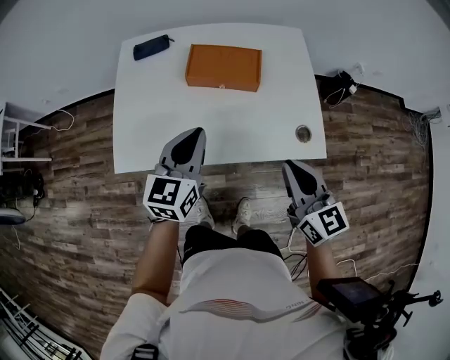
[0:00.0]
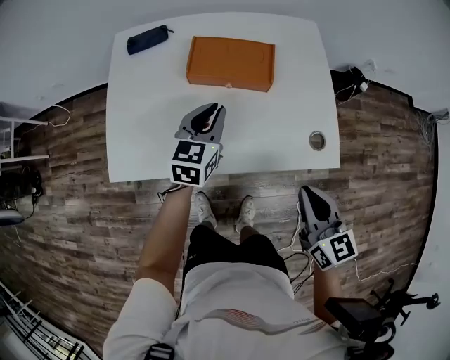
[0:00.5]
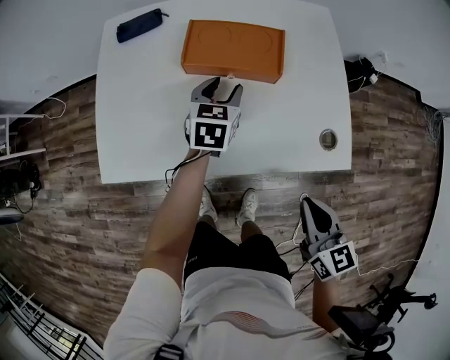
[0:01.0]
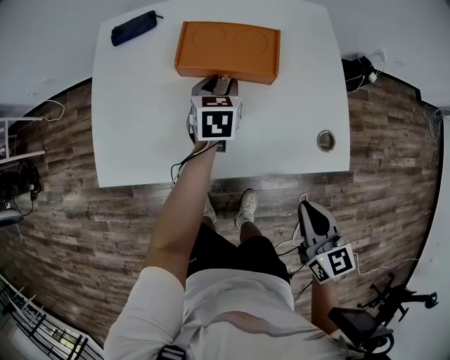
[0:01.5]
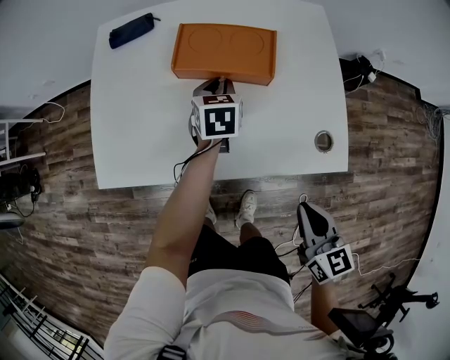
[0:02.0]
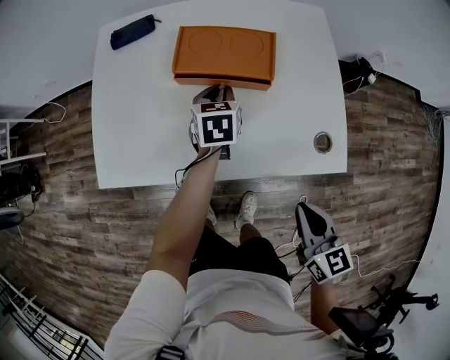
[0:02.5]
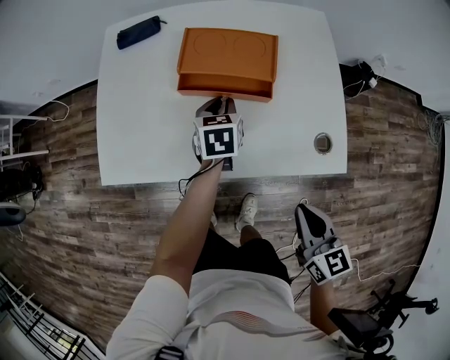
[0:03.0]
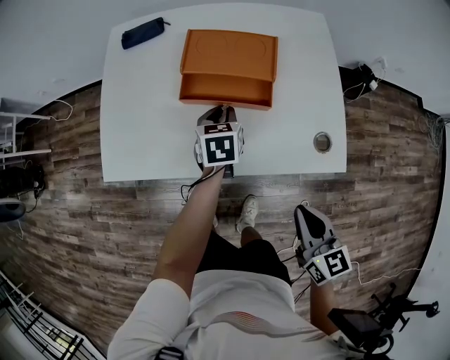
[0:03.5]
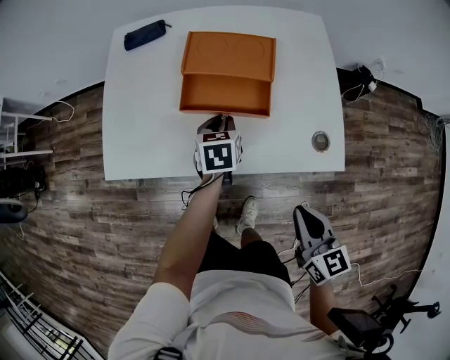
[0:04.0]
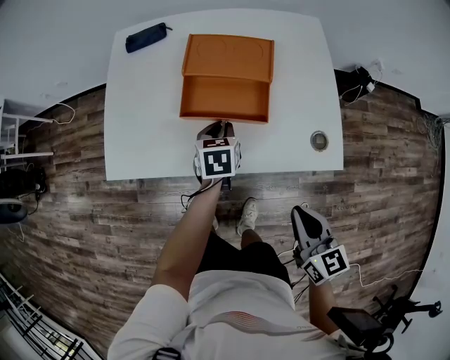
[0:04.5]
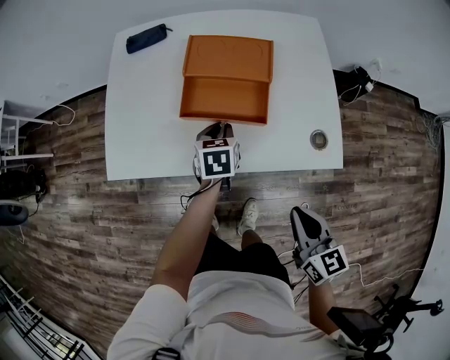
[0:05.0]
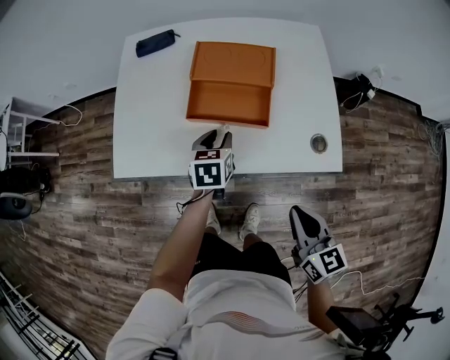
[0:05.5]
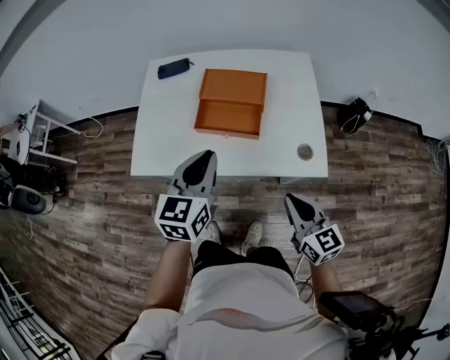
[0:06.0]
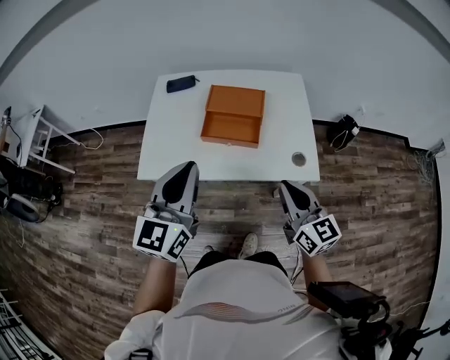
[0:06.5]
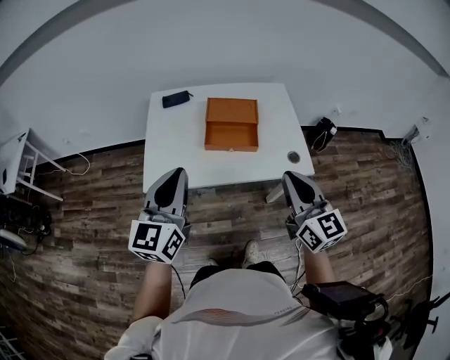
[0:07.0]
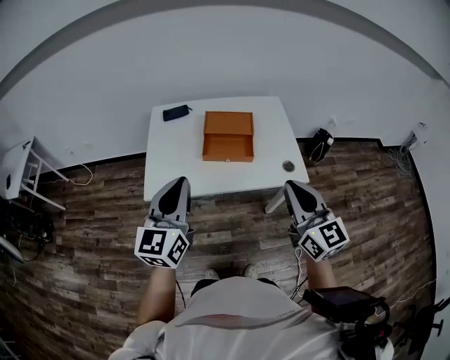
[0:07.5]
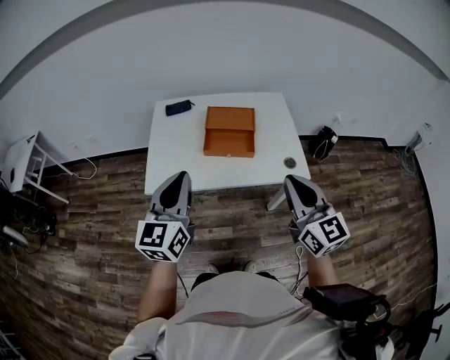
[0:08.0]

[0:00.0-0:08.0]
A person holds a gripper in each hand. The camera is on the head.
0:00.0 to 0:02.0: The right gripper heads downward, covering some 15 cm; the left gripper moves downward and forward, some 30 cm, swivels approximately 30 degrees, and opens, then closes again.
0:02.0 to 0:04.0: The left gripper heads backward, covering roughly 10 cm.
0:04.0 to 0:06.0: The right gripper goes about 5 cm upward, while the left gripper shifts some 30 cm upward and backward, and changes its angle by approximately 30 degrees.
0:06.0 to 0:08.0: The right gripper travels upward by roughly 20 cm, and rotates roughly 20 degrees. The left gripper heads to the left, upward and backward, covering roughly 25 cm.

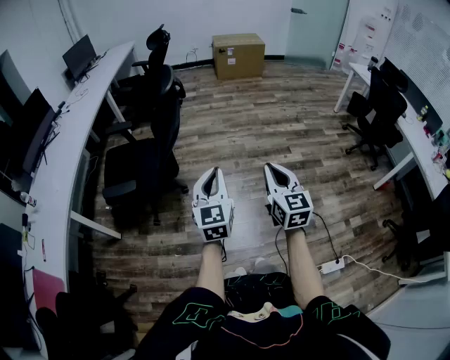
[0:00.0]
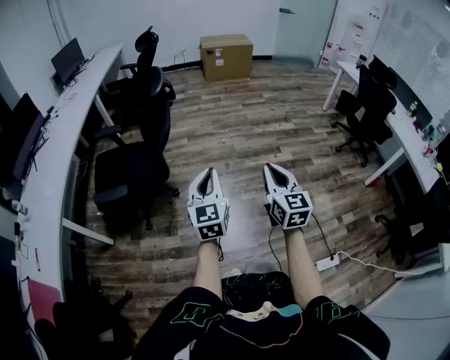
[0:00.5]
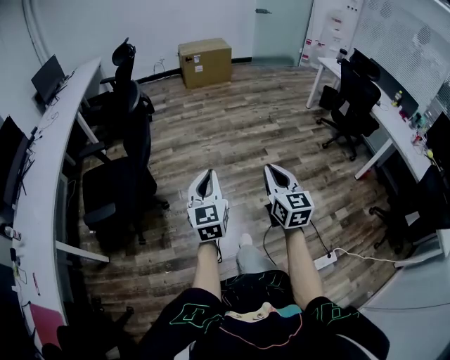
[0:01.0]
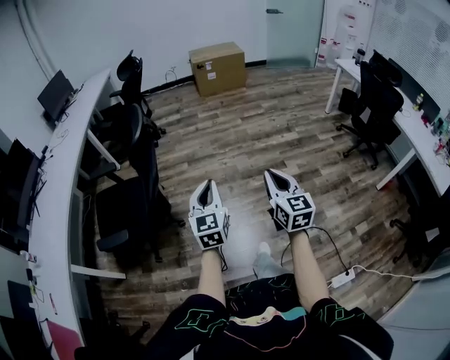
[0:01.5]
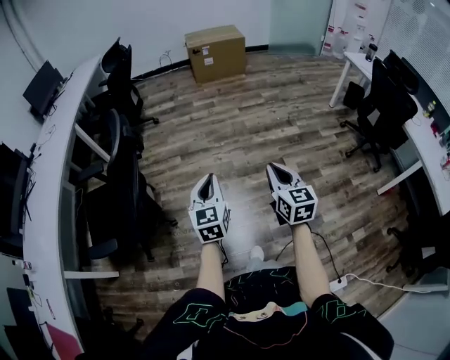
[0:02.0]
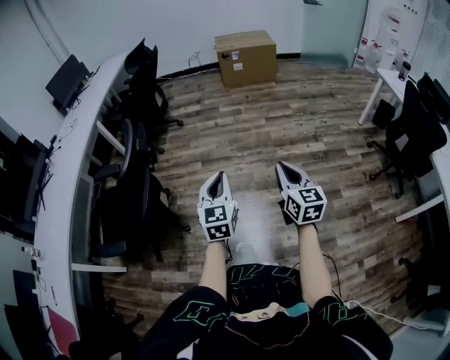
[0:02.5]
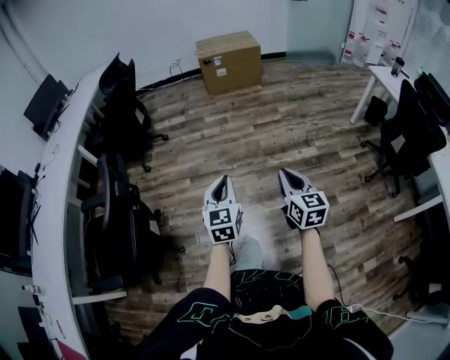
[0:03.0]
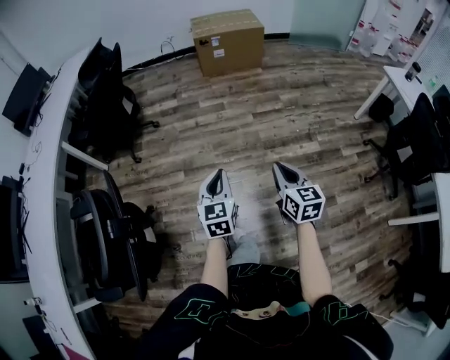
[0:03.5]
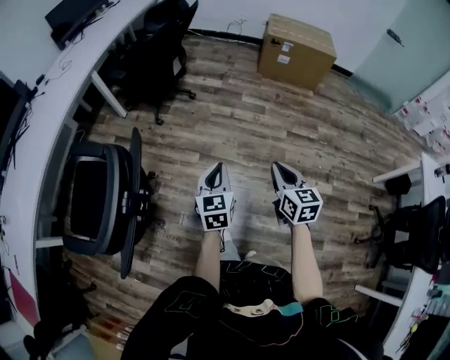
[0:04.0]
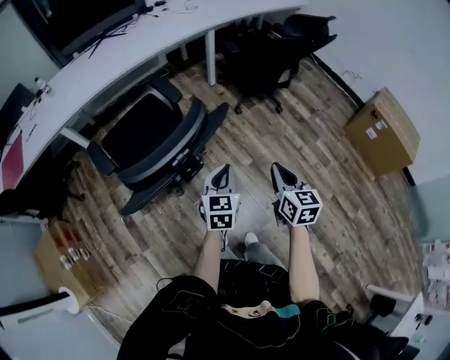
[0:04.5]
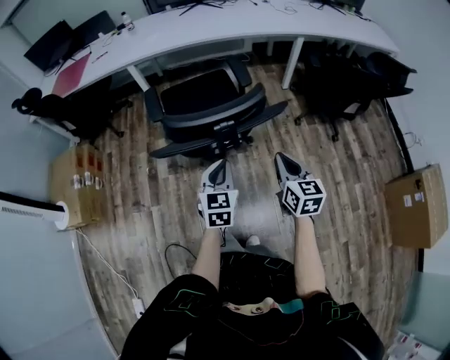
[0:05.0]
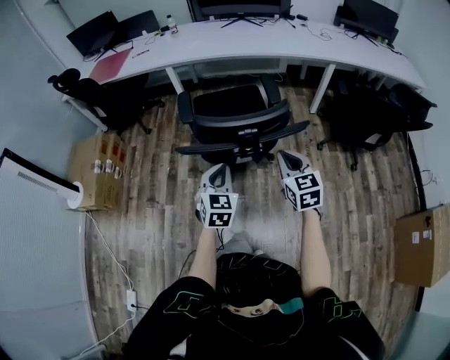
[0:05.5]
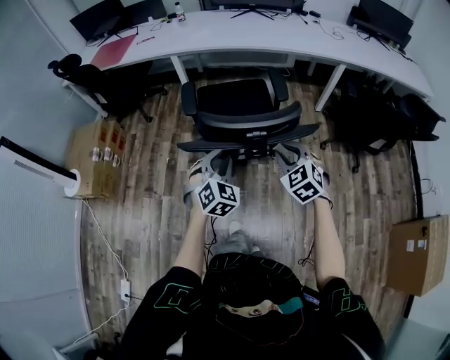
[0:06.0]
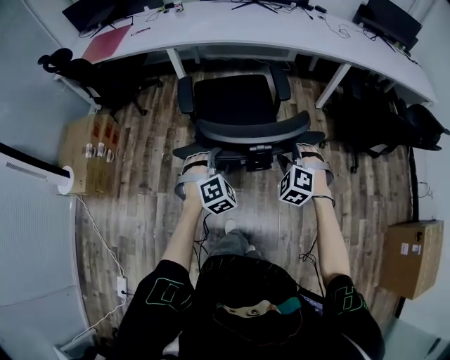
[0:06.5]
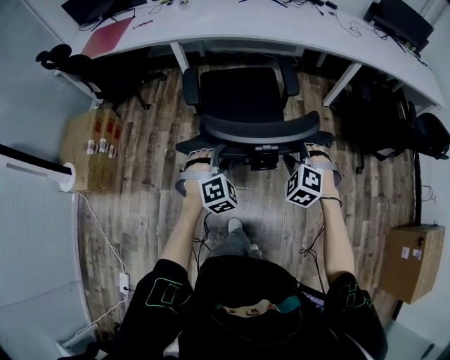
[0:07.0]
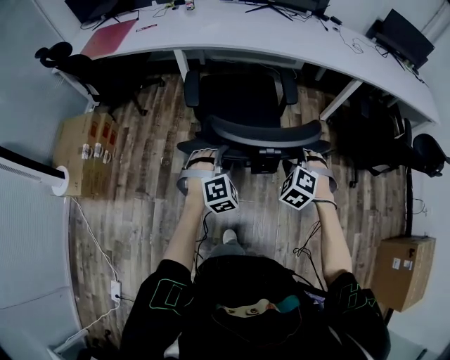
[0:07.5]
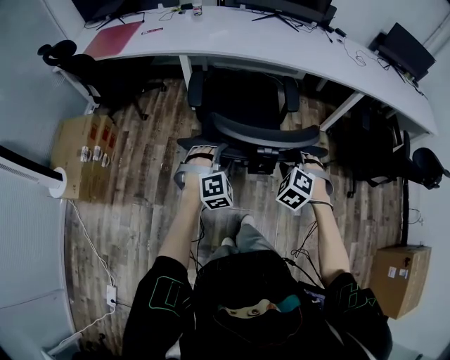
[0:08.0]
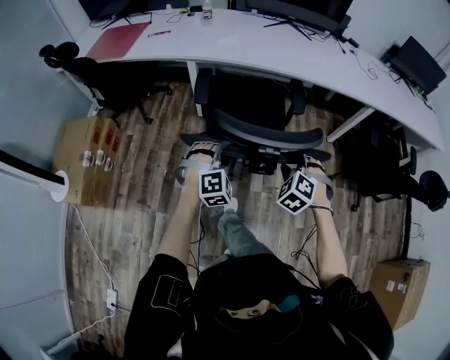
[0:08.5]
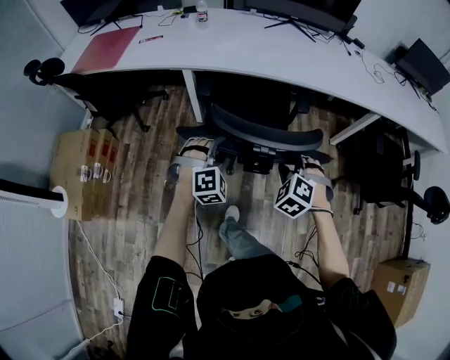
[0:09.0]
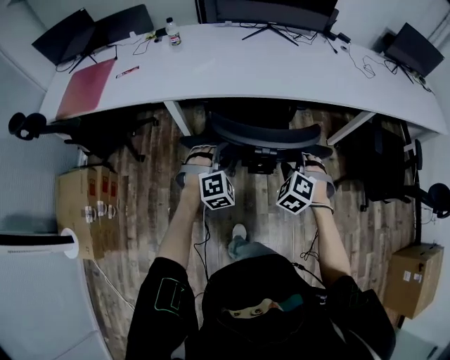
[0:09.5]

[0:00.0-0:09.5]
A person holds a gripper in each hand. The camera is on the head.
0:00.0 to 0:02.0: The left gripper heads forward, covering roughly 30 cm. Meanwhile the right gripper is displaced forward and to the right by some 35 cm.
0:02.0 to 0:04.0: Both grippers are carried forward, roughly 50 cm. The left gripper turns by roughly 20 degrees; the right gripper rotates some 30 degrees.
0:04.0 to 0:05.5: The left gripper shifts by approximately 30 cm, and rotates some 70 degrees. Meanwhile the right gripper ends up about 35 cm from where it was, and turns by some 80 degrees.
0:05.5 to 0:07.5: The left gripper shifts roughly 20 cm forward, rolls clockwise, seen from behind, by approximately 50 degrees, and opens. The right gripper is displaced forward and downward by about 20 cm, twists about 50 degrees counterclockwise, seen from behind, and opens up.
0:07.5 to 0:09.5: The two grippers go roughly 35 cm forward.

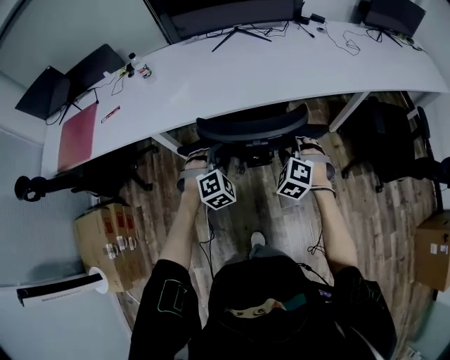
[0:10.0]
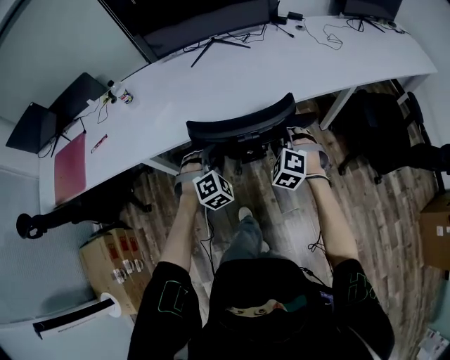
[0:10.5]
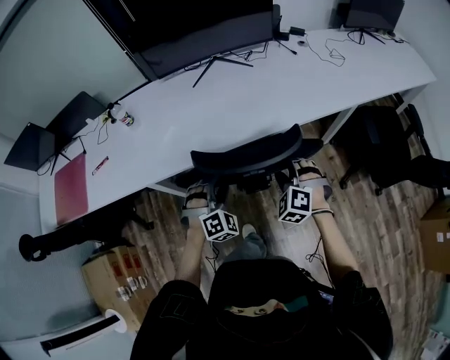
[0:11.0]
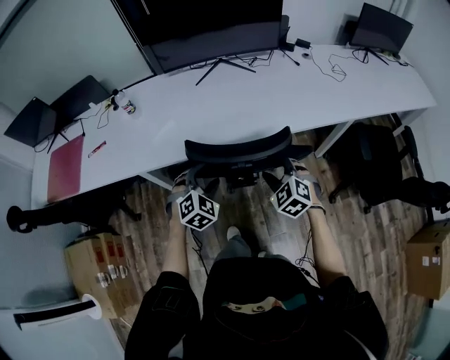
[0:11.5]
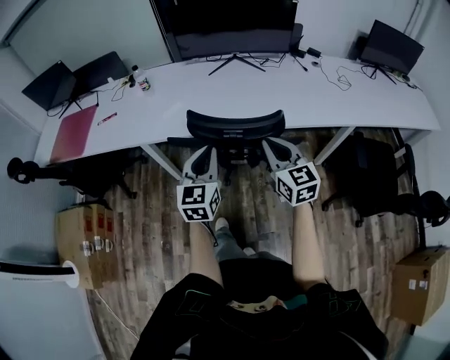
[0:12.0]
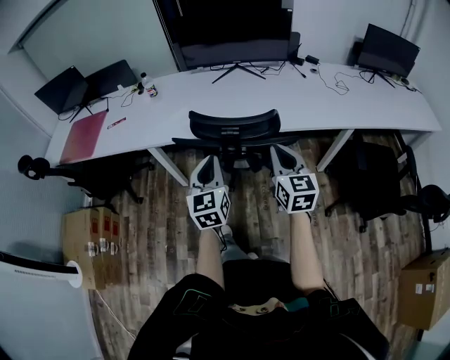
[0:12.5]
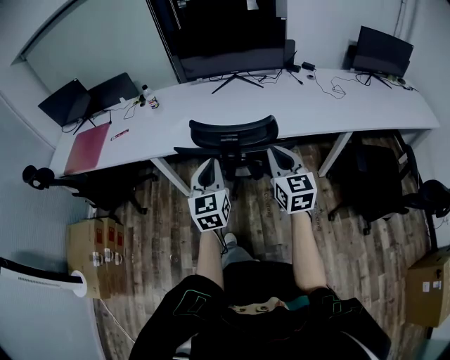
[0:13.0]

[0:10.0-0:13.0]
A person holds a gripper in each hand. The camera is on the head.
0:10.0 to 0:11.5: Both grippers move forward, some 10 cm. The right gripper turns by approximately 20 degrees.
0:11.5 to 0:13.0: The grippers both shift upward and backward by roughly 20 cm. The right gripper tips its fingers upward by some 30 degrees, and closes, while the left gripper tilts its fingers some 40 degrees upward, and closes up.

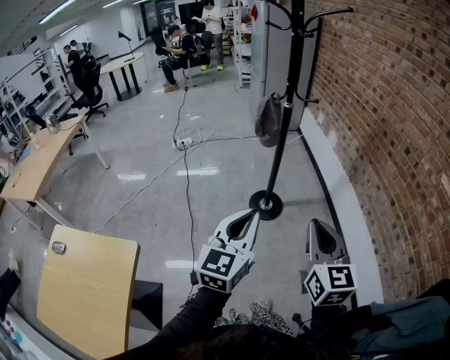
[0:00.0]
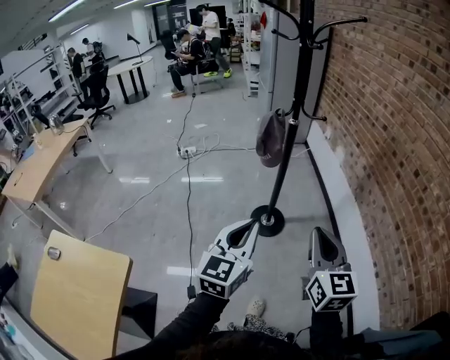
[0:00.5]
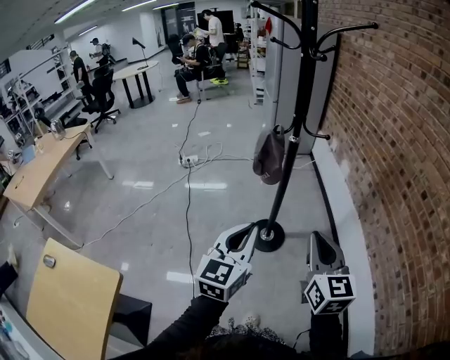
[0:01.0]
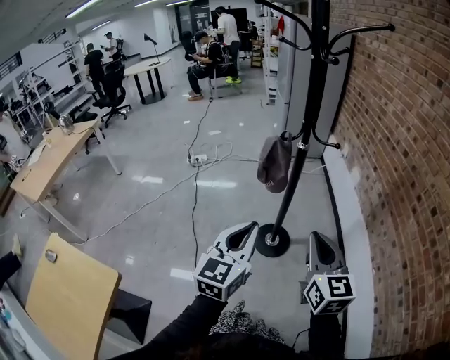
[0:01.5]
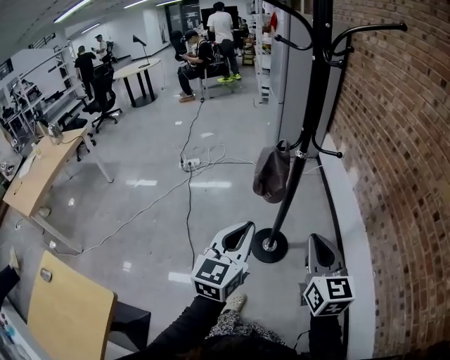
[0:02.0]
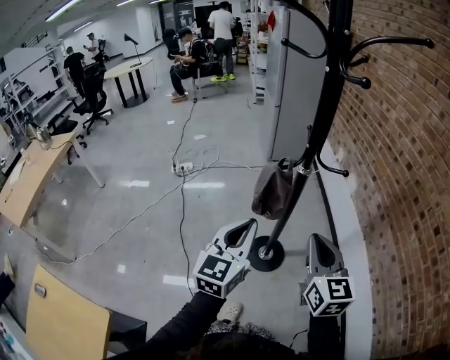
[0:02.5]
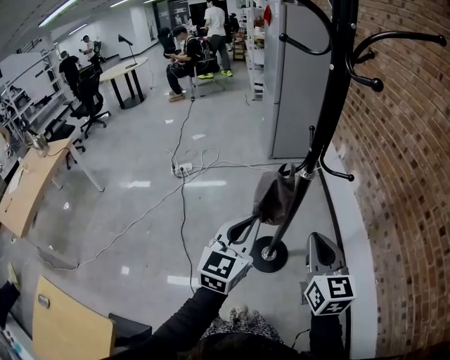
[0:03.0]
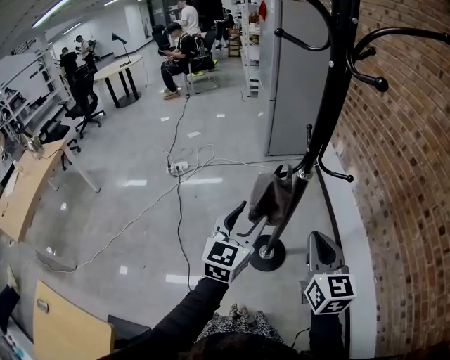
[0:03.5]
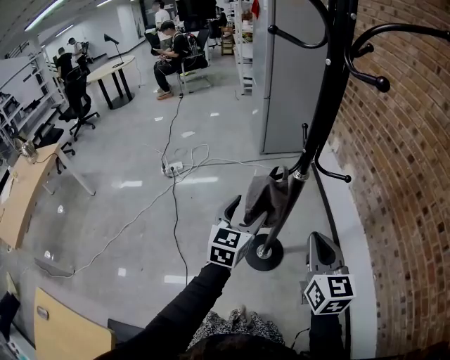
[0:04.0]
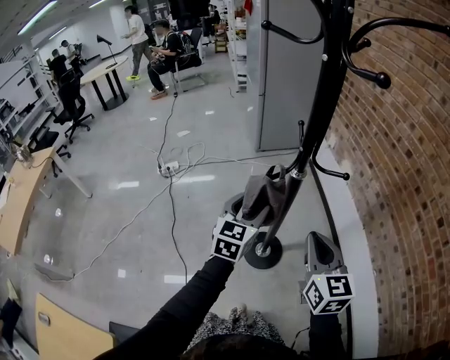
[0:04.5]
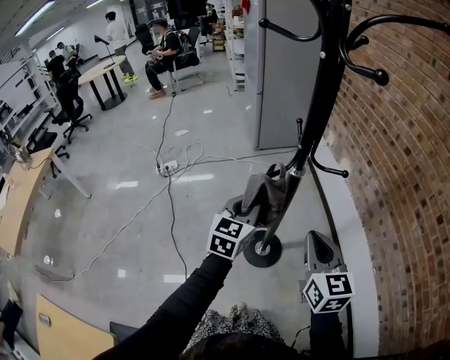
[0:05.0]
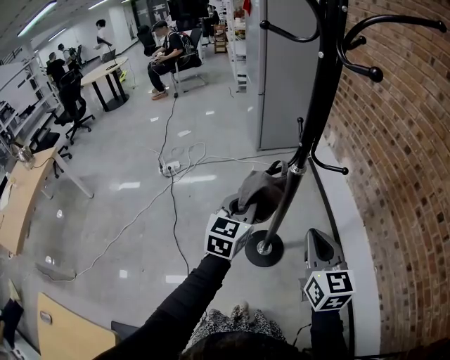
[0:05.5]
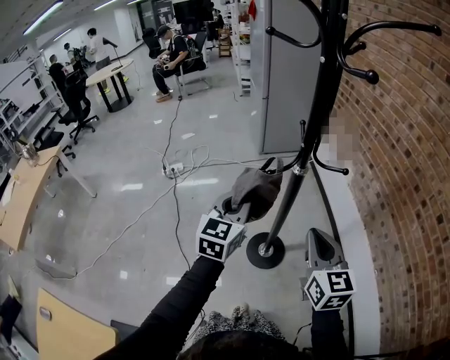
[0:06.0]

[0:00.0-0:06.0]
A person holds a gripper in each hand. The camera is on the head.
0:00.0 to 0:02.0: Both grippers move forward, roughly 30 cm.
0:02.0 to 0:04.0: The left gripper goes roughly 25 cm forward, and opens up; the right gripper goes some 15 cm forward.
0:04.0 to 0:06.0: The left gripper goes some 5 cm upward, and closes up.
